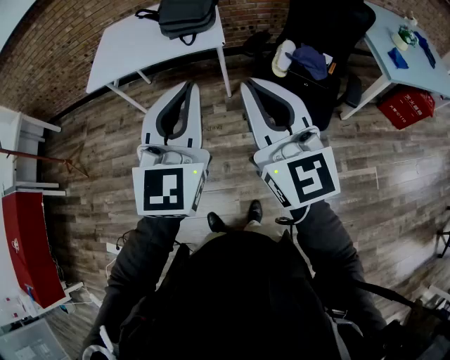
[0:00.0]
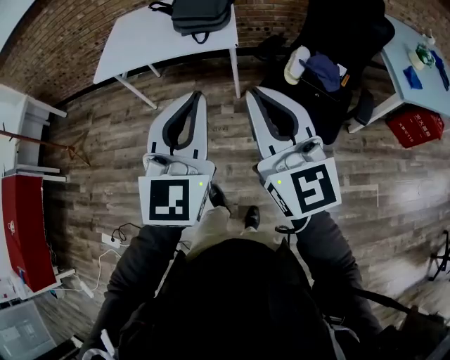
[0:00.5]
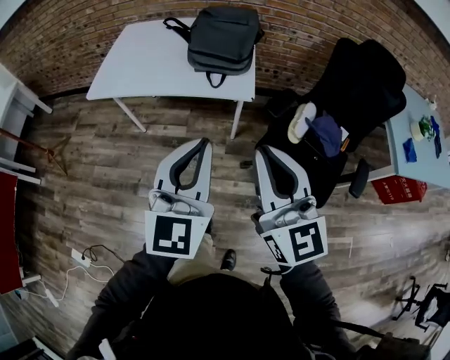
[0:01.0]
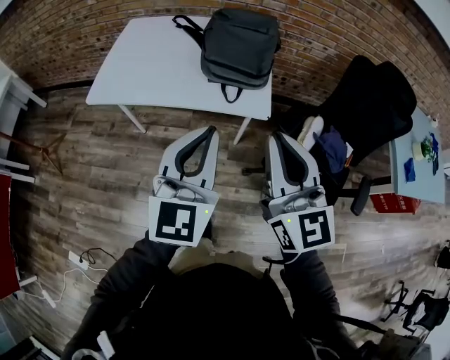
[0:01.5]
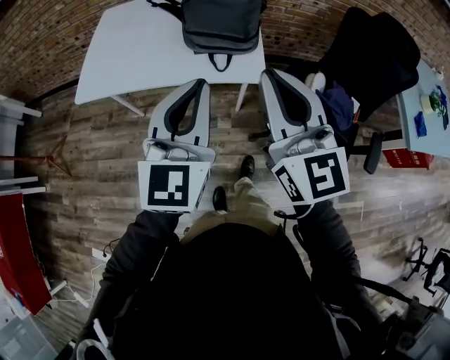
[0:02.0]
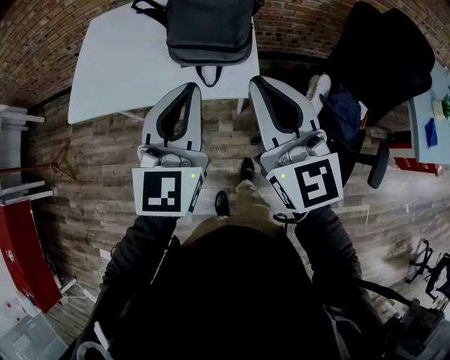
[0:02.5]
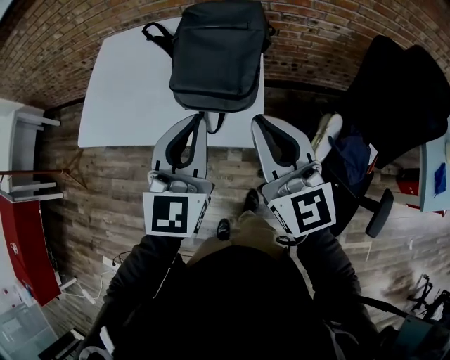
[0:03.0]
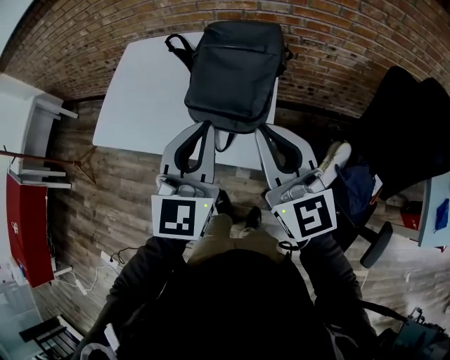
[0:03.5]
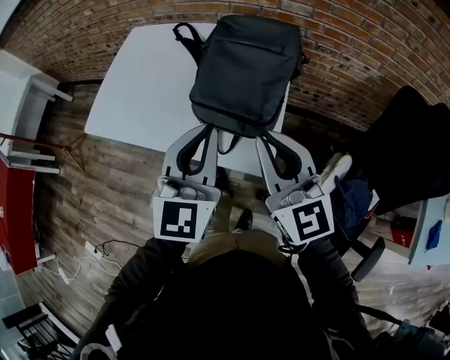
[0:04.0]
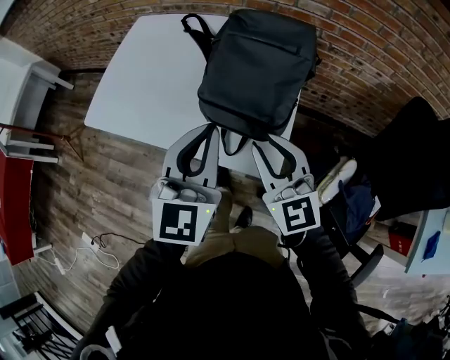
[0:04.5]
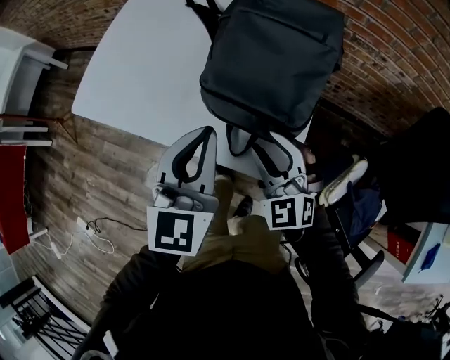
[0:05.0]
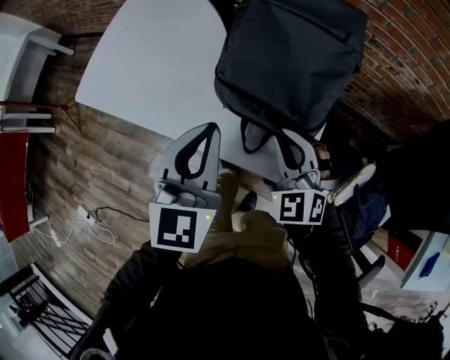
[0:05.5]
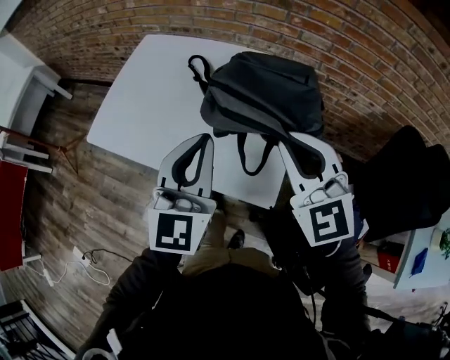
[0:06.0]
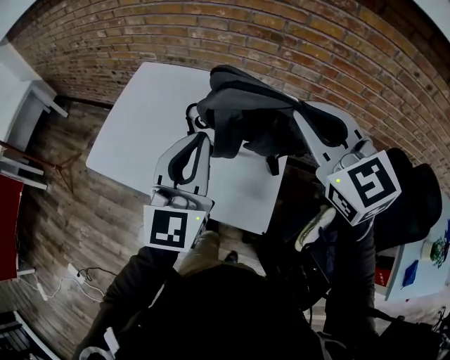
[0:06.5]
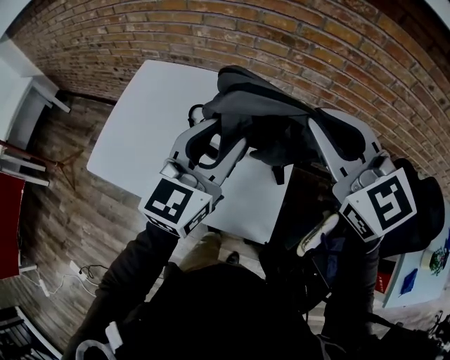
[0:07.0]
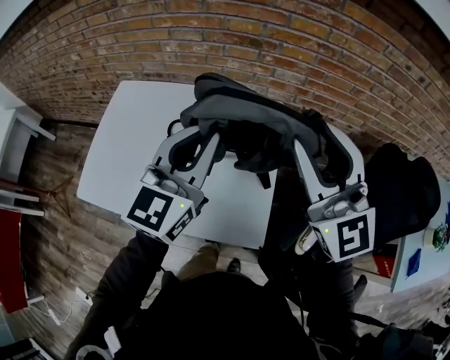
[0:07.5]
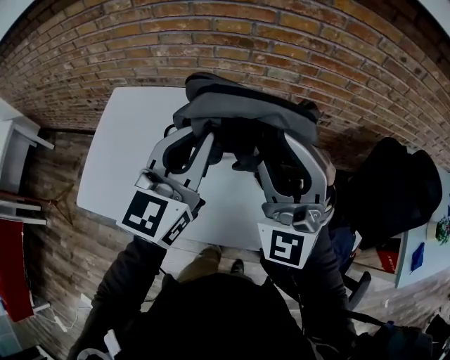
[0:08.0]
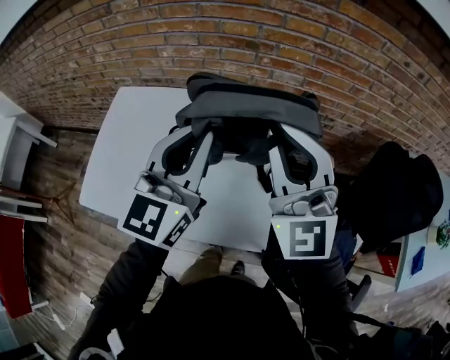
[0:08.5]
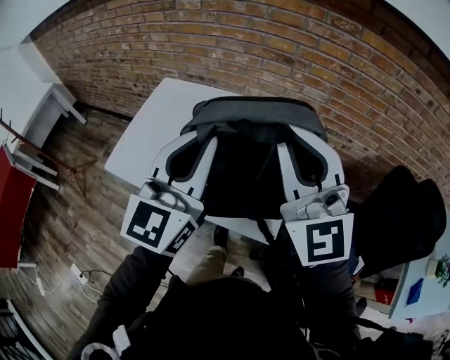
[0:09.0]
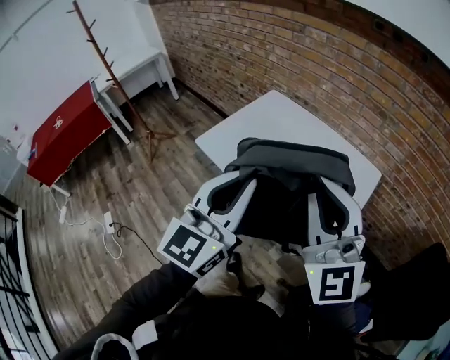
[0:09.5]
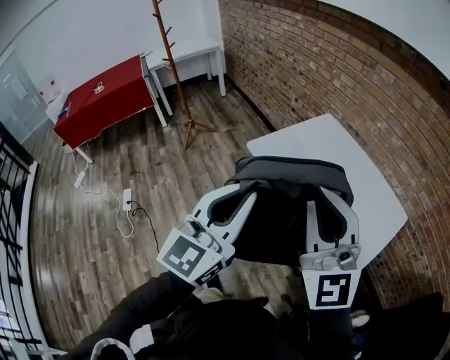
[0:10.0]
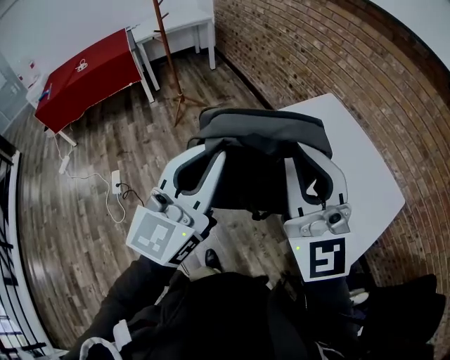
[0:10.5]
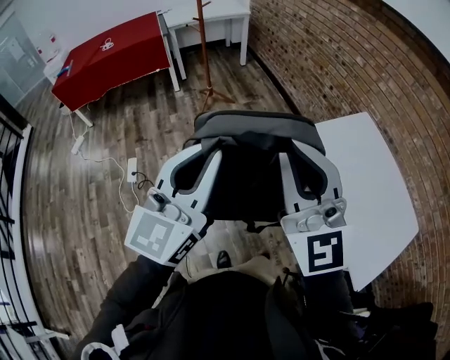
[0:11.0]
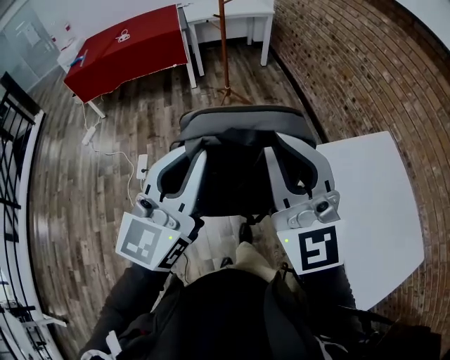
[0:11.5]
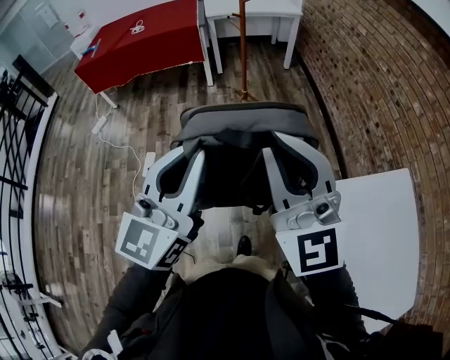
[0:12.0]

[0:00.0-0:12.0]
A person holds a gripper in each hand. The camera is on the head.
0:00.0 to 0:02.0: The two grippers go some 35 cm forward.
0:02.0 to 0:04.0: The right gripper heads forward, downward and to the right, covering about 25 cm, and rotates about 20 degrees. The left gripper moves forward and to the right, about 25 cm.
0:04.0 to 0:06.0: The right gripper moves forward, some 10 cm, goes downward and returns, about 20 cm each way, swivels some 40 degrees, and opens, then closes once more; the left gripper travels forward and to the left by roughly 10 cm, and travels downward and back again, some 10 cm each way.
0:06.0 to 0:08.0: The left gripper goes some 15 cm forward and upward, changes its angle by roughly 20 degrees, and opens, then closes once more. Meanwhile the right gripper shifts about 15 cm upward and forward, points its fingers roughly 30 degrees further upward, and opens its fingers.
0:08.0 to 0:10.0: The left gripper ends up approximately 50 cm from where it was, and swivels some 50 degrees, while the right gripper moves some 40 cm, swivels about 60 degrees, and closes.
0:10.0 to 0:12.0: The pair of grippers is taken about 50 cm. The left gripper rotates approximately 30 degrees. Meanwhile the right gripper changes its angle by approximately 30 degrees.

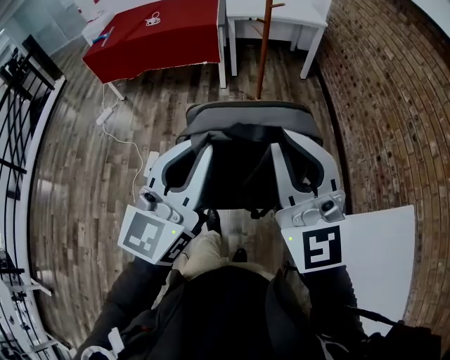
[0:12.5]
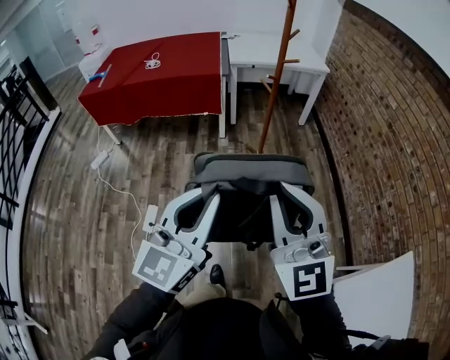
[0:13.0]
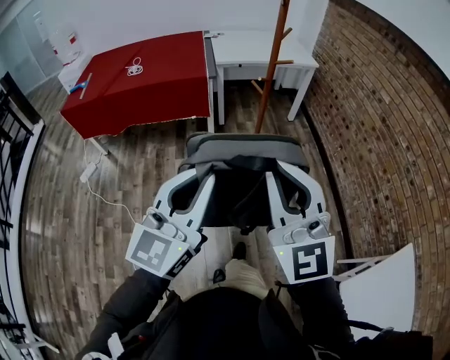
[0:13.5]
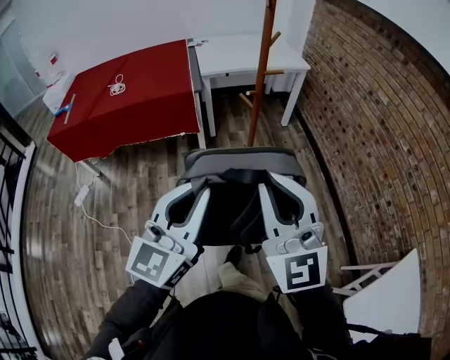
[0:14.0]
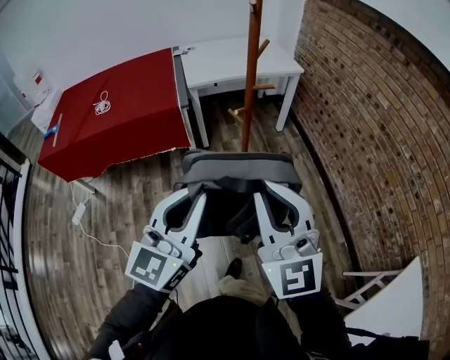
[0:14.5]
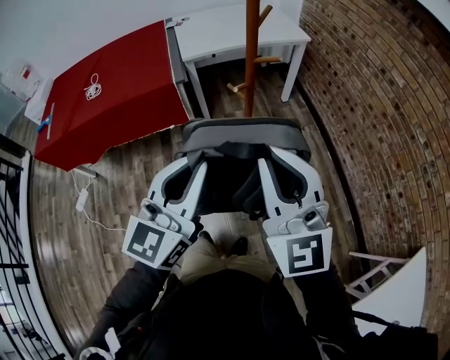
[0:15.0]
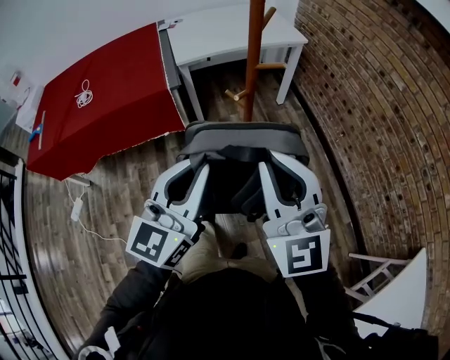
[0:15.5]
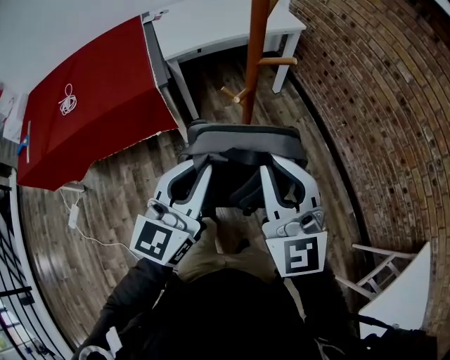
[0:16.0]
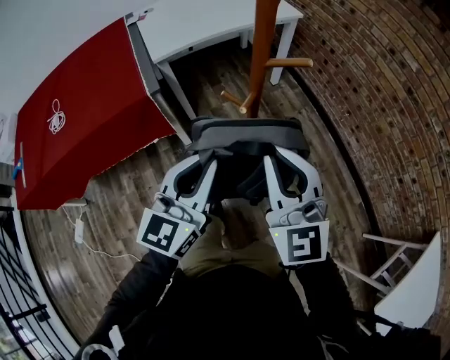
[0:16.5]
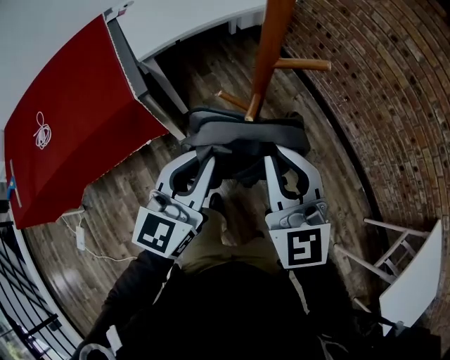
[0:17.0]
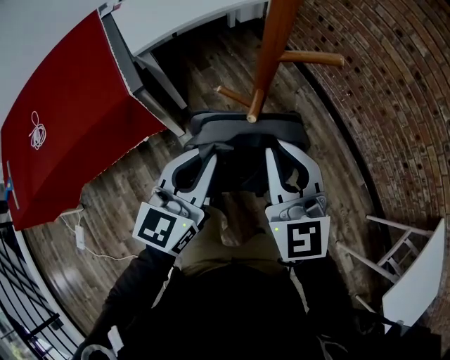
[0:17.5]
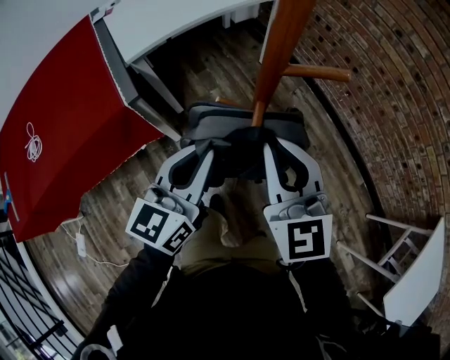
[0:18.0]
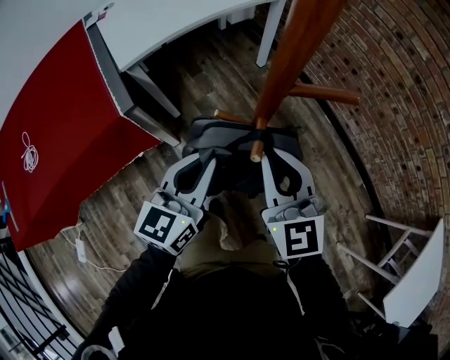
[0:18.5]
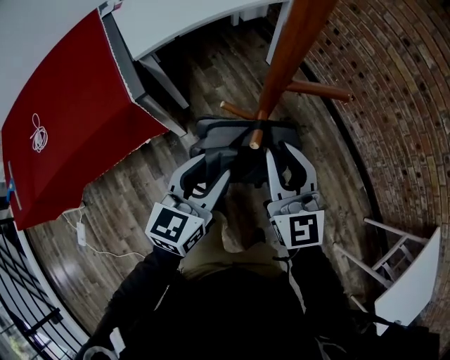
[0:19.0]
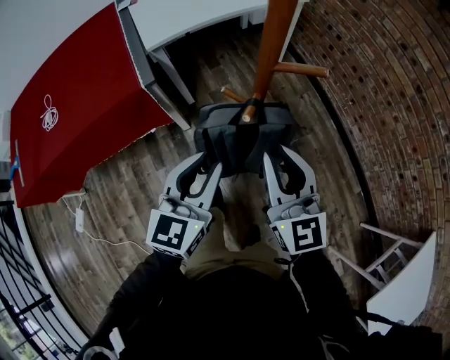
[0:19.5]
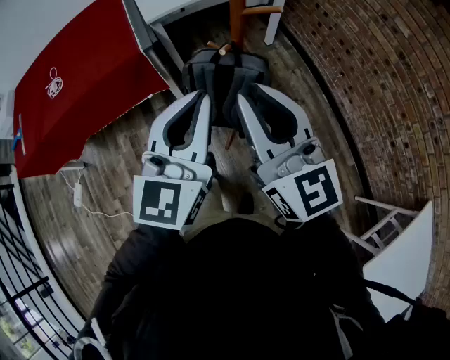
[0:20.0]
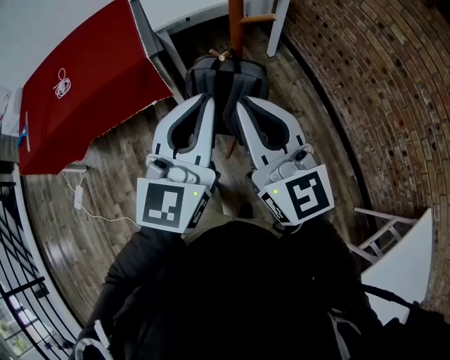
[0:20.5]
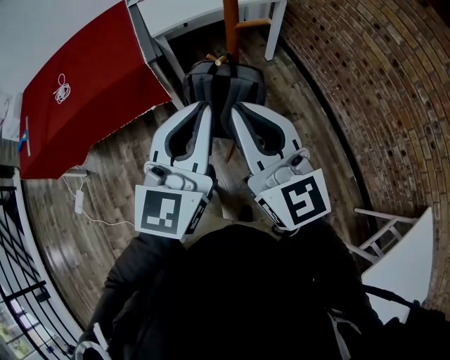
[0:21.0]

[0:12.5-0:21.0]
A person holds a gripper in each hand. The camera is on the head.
0:12.5 to 0:14.5: The pair of grippers is taken forward, about 40 cm.
0:14.5 to 0:16.5: Both grippers move forward and downward, roughly 30 cm.
0:16.5 to 0:19.0: The right gripper goes about 15 cm forward and downward. Meanwhile the left gripper goes about 15 cm downward and forward, and opens up.
0:19.0 to 0:21.0: The left gripper goes some 30 cm upward and backward, turns by about 30 degrees, and closes up. The right gripper moves backward and upward, about 25 cm, and changes its angle by roughly 20 degrees.

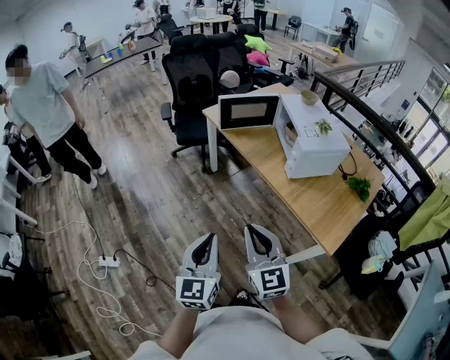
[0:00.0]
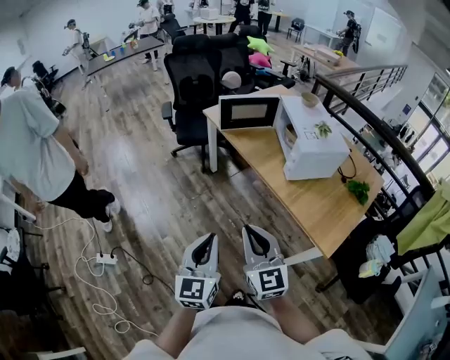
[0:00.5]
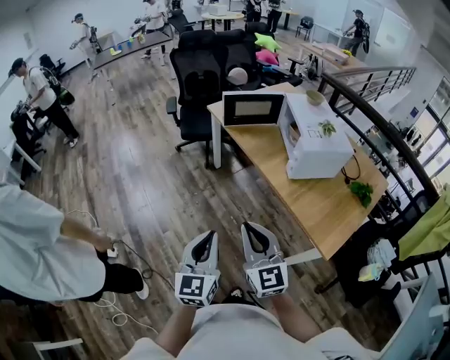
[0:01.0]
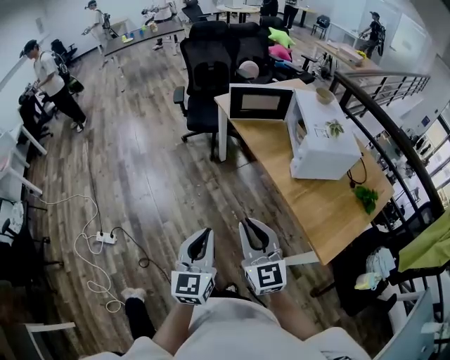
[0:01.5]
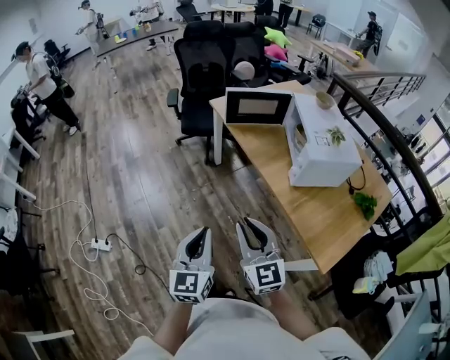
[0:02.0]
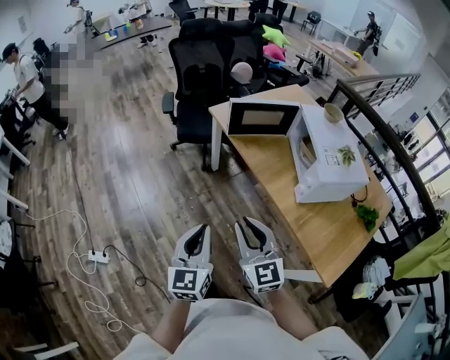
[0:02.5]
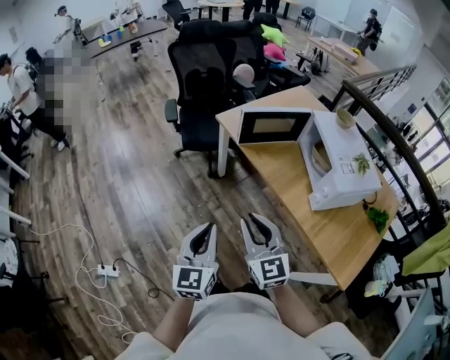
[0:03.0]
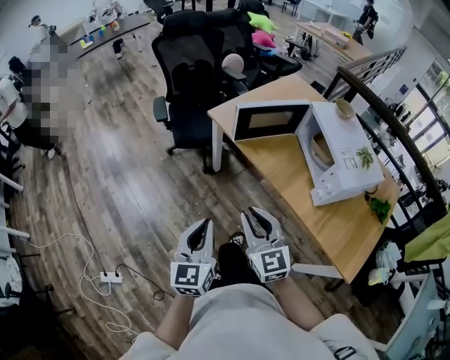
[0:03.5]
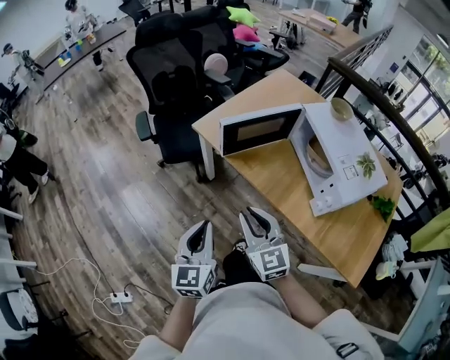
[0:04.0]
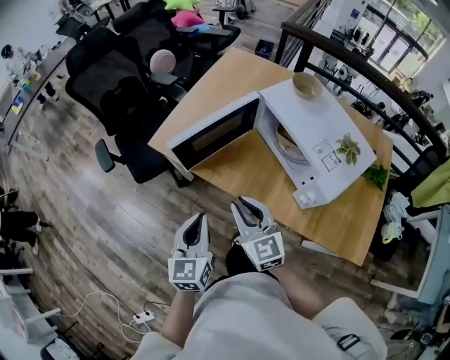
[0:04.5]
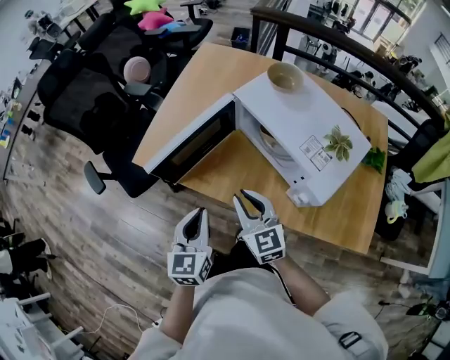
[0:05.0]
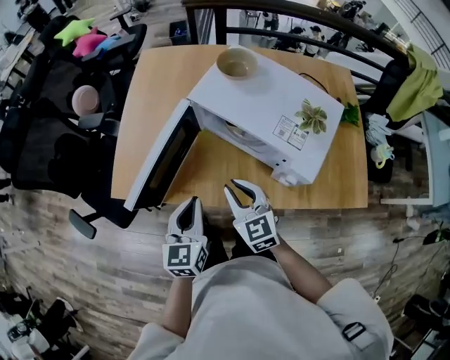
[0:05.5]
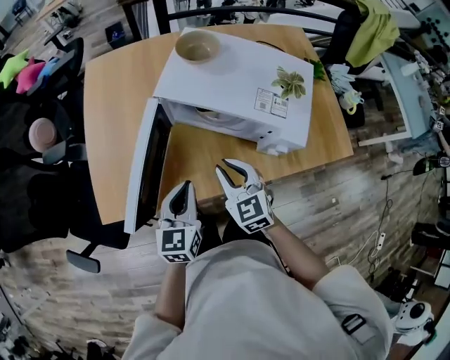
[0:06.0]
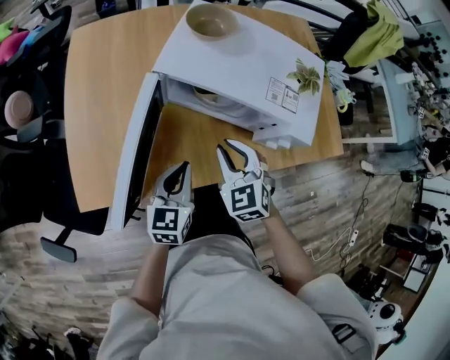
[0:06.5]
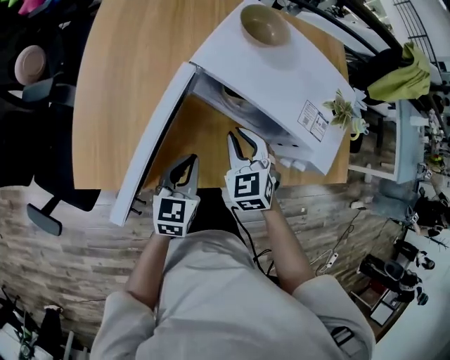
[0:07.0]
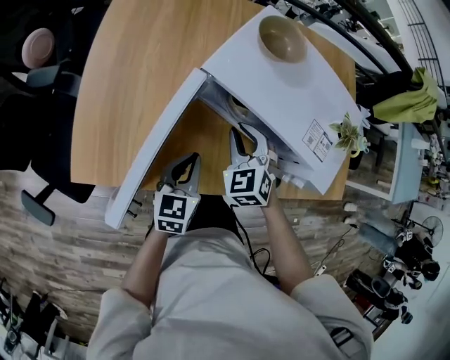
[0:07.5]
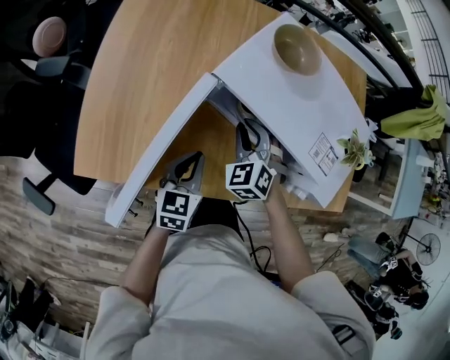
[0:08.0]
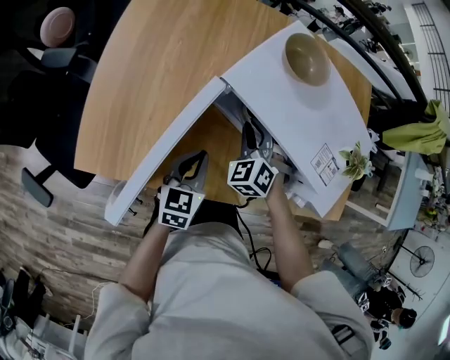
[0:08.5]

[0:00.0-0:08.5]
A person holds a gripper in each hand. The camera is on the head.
0:00.0 to 0:02.0: The grippers both shift forward by roughly 5 cm.
0:02.0 to 0:04.0: Both grippers move forward, approximately 35 cm.
0:04.0 to 0:06.5: The right gripper ends up approximately 30 cm from where it was, and swivels some 60 degrees. The left gripper shifts by approximately 40 cm, and changes its angle by about 70 degrees.
0:06.5 to 0:08.5: The left gripper travels forward and downward by roughly 10 cm, while the right gripper goes approximately 15 cm forward and downward, and changes its angle by roughly 30 degrees.
